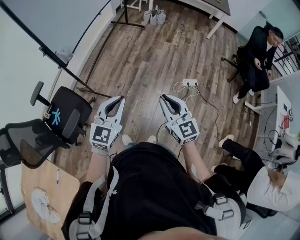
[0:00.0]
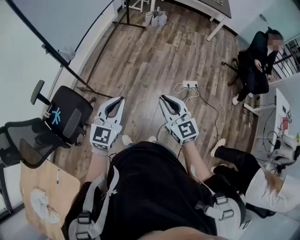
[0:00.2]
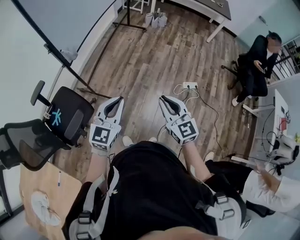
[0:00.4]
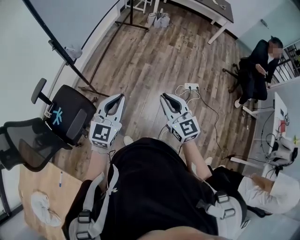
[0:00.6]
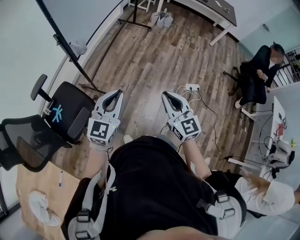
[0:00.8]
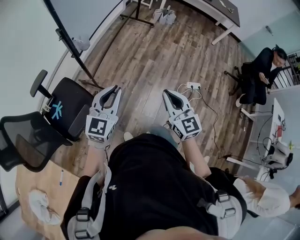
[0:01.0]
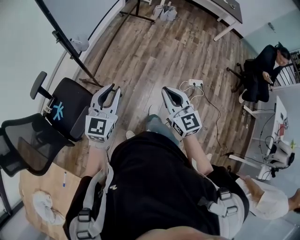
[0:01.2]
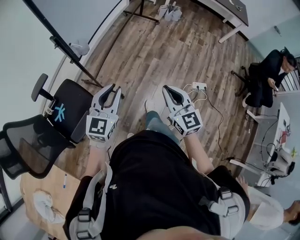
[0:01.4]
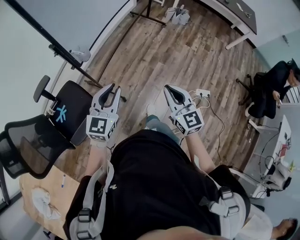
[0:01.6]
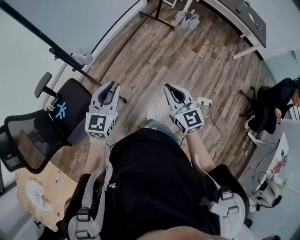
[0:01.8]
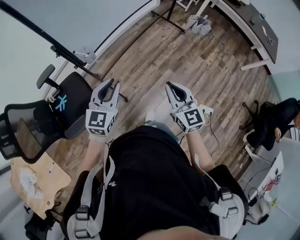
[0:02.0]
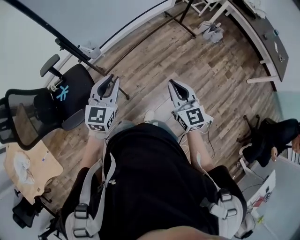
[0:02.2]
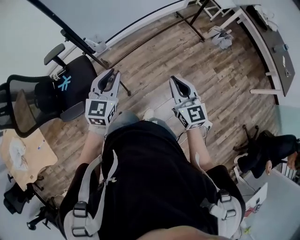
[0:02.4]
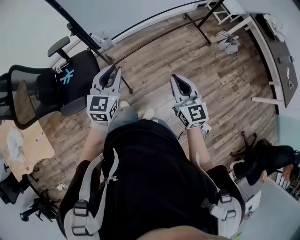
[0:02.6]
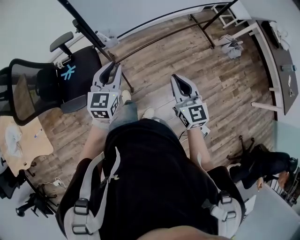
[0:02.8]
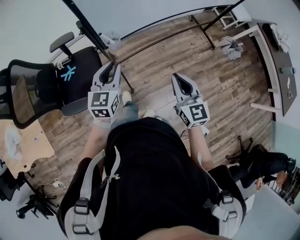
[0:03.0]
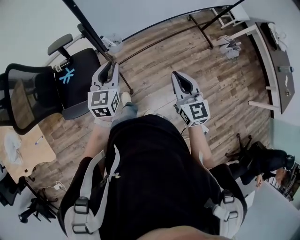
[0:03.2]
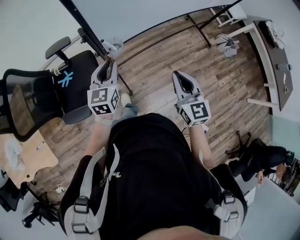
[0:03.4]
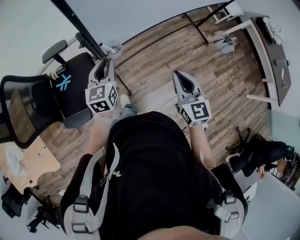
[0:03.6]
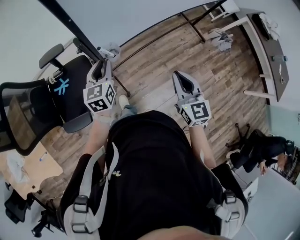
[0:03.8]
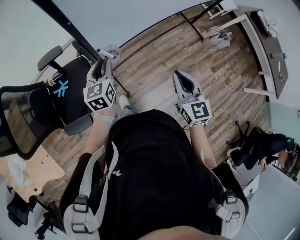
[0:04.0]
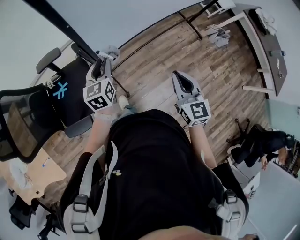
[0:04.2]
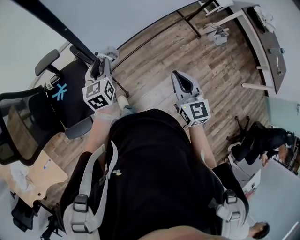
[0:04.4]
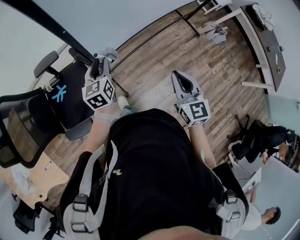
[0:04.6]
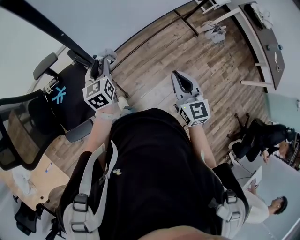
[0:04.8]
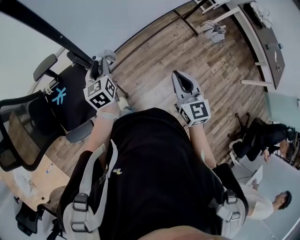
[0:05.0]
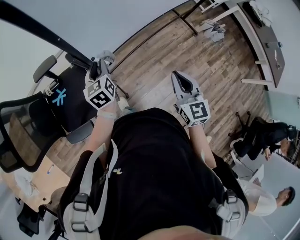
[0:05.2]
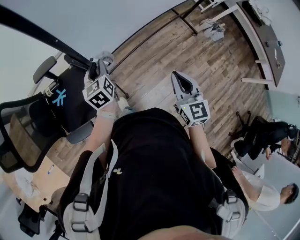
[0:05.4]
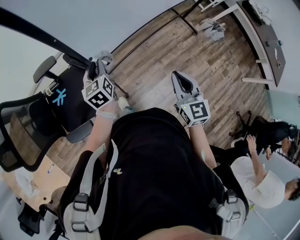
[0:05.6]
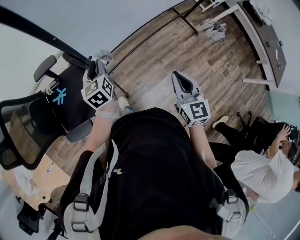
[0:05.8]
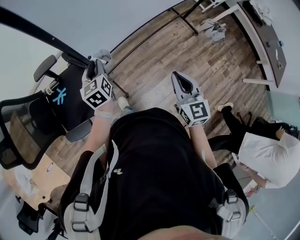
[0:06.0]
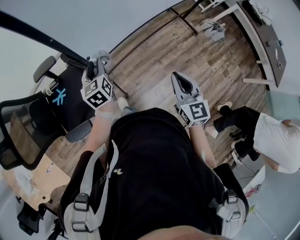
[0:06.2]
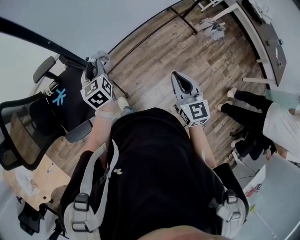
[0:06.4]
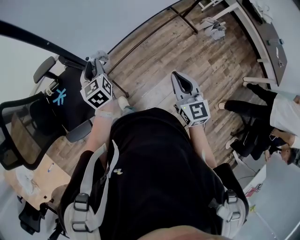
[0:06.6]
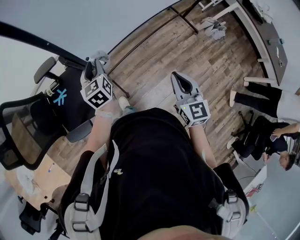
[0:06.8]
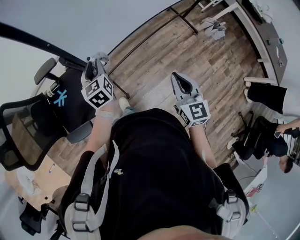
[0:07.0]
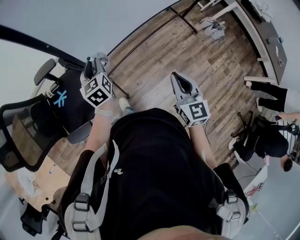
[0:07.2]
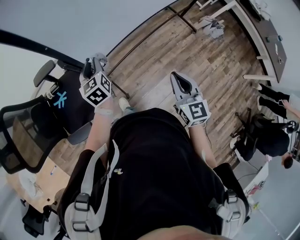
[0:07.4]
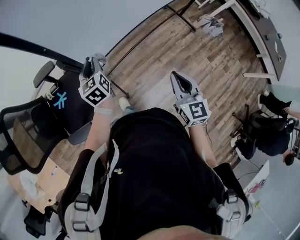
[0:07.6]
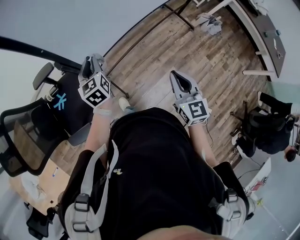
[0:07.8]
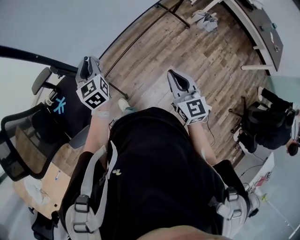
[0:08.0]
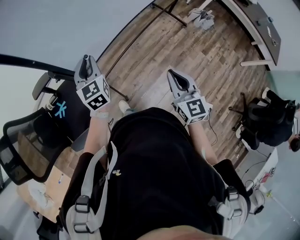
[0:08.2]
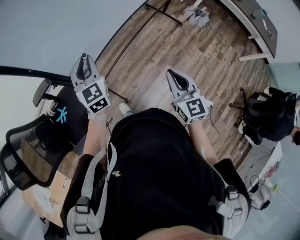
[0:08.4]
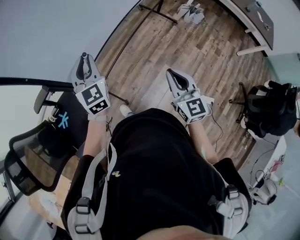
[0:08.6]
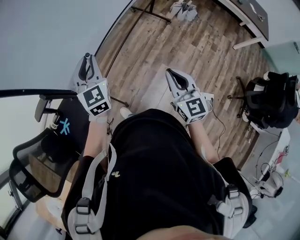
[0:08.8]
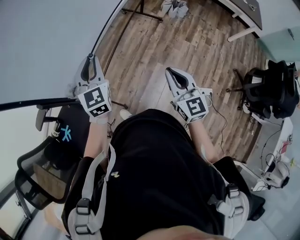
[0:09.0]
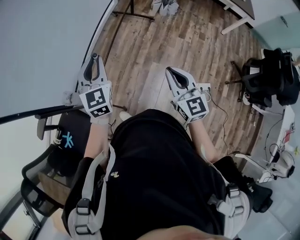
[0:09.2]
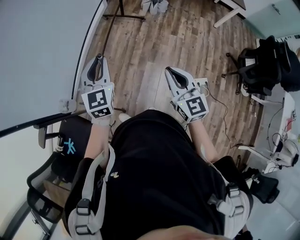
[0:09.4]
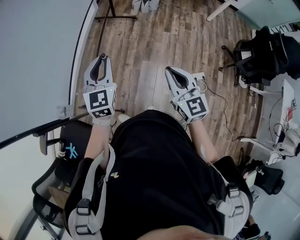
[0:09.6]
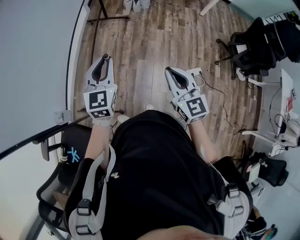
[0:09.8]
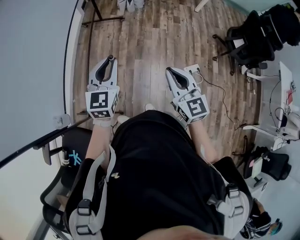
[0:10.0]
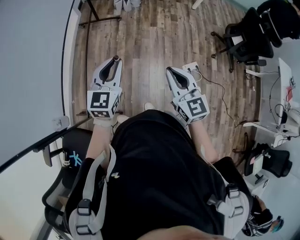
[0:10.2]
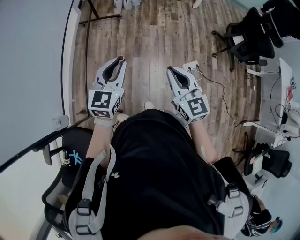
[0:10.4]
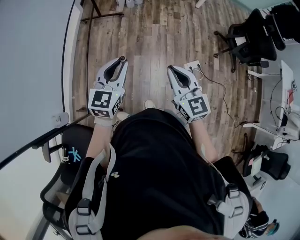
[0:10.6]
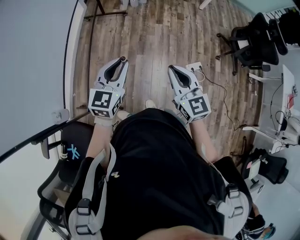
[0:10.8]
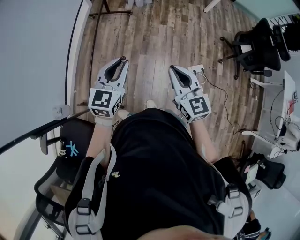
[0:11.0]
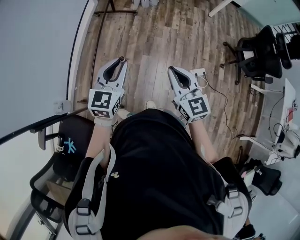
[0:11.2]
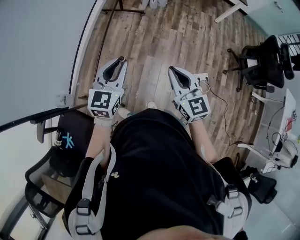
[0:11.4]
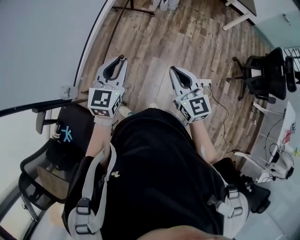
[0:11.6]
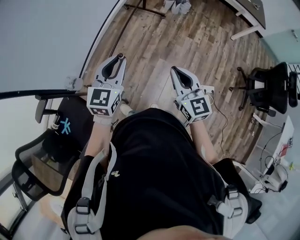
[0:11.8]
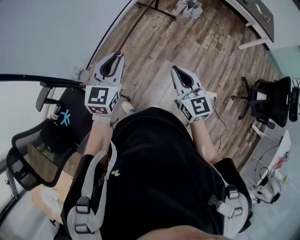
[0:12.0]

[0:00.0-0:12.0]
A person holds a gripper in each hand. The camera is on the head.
0:00.0 to 0:01.6: The two grippers go roughly 25 cm forward and to the left.
0:01.6 to 0:03.0: The left gripper shifts by some 20 cm, and rotates roughly 40 degrees. Meanwhile the right gripper shifts by about 25 cm, and swivels some 30 degrees.
0:03.0 to 0:04.4: The right gripper travels forward by roughly 10 cm. The left gripper travels forward, to the left and downward by roughly 15 cm.
0:04.4 to 0:07.6: The grippers move only a little.
0:07.6 to 0:09.0: The right gripper heads to the right and backward, covering about 15 cm. Meanwhile the left gripper is displaced to the right and upward by some 25 cm, and rotates roughly 50 degrees.
0:09.0 to 0:10.4: The left gripper ends up approximately 30 cm from where it was, and rotates roughly 50 degrees, while the right gripper ends up about 15 cm from where it was, and swivels about 20 degrees.
0:10.4 to 0:12.0: The left gripper moves about 20 cm, and swivels roughly 30 degrees. The right gripper ends up roughly 15 cm from where it was, and rotates about 30 degrees.

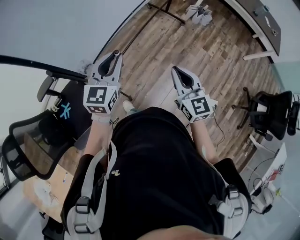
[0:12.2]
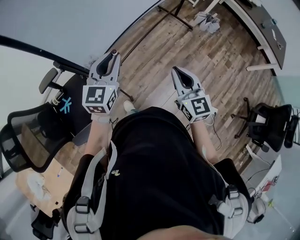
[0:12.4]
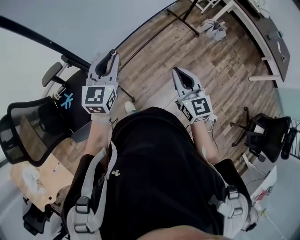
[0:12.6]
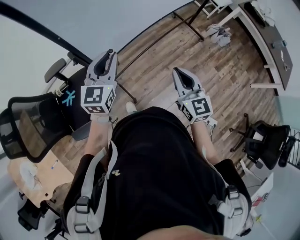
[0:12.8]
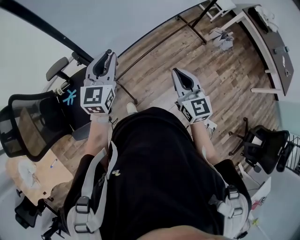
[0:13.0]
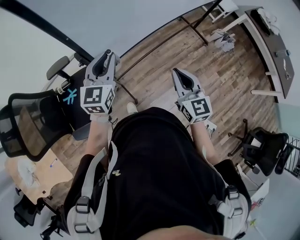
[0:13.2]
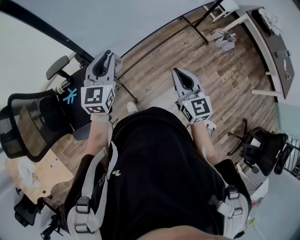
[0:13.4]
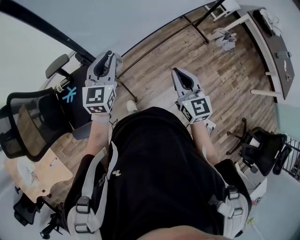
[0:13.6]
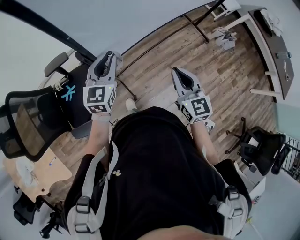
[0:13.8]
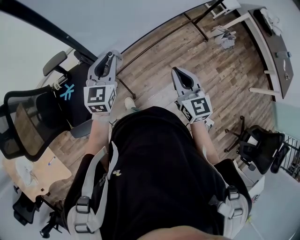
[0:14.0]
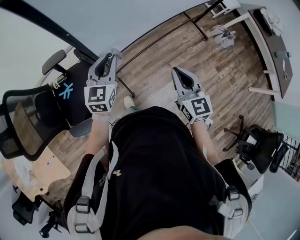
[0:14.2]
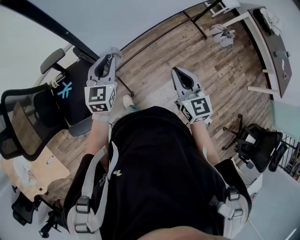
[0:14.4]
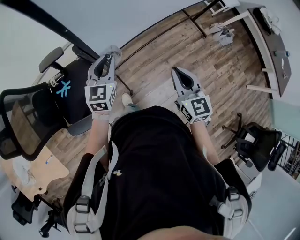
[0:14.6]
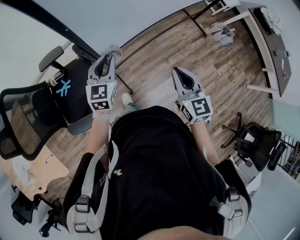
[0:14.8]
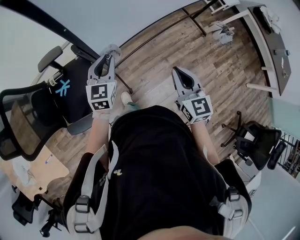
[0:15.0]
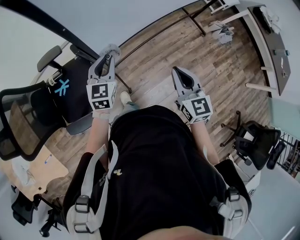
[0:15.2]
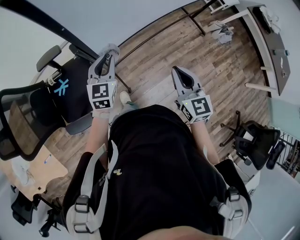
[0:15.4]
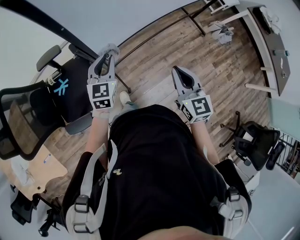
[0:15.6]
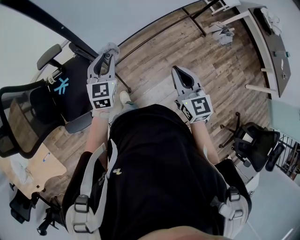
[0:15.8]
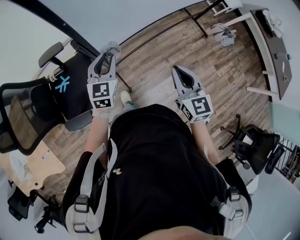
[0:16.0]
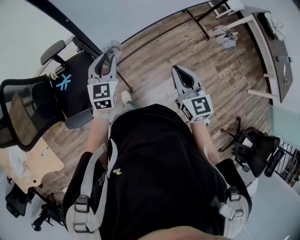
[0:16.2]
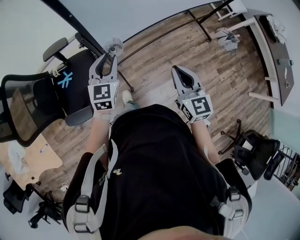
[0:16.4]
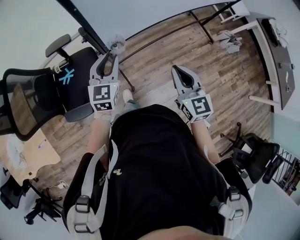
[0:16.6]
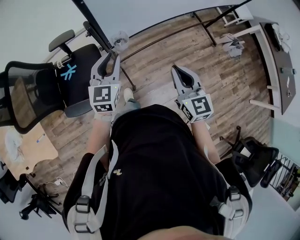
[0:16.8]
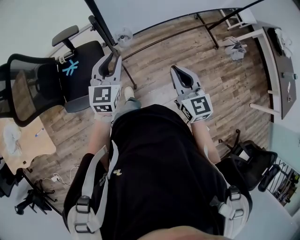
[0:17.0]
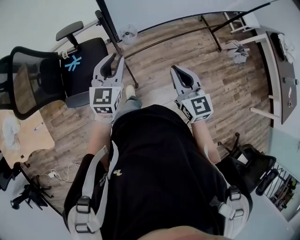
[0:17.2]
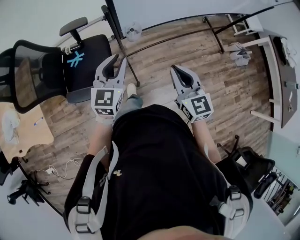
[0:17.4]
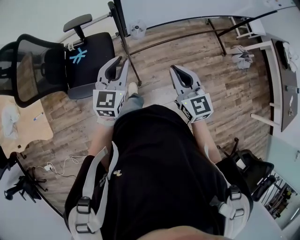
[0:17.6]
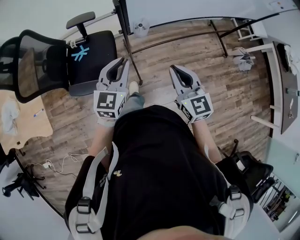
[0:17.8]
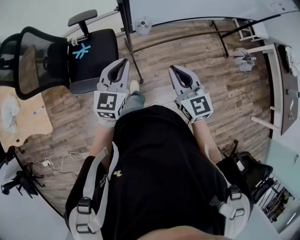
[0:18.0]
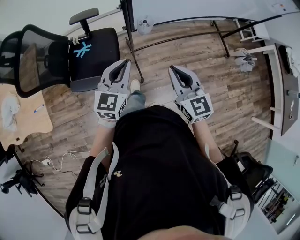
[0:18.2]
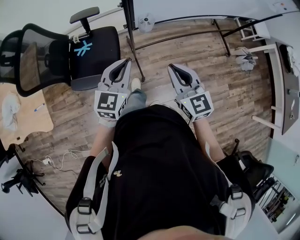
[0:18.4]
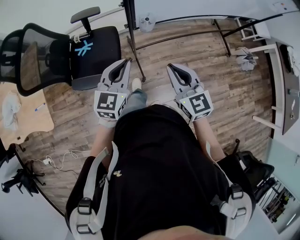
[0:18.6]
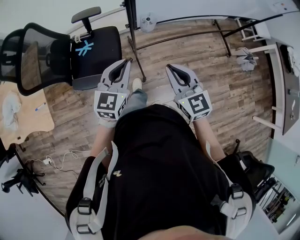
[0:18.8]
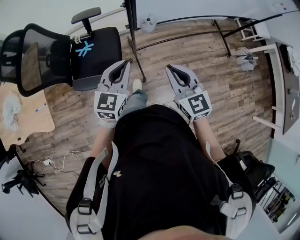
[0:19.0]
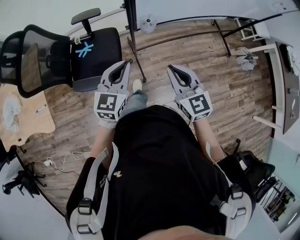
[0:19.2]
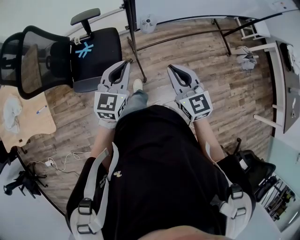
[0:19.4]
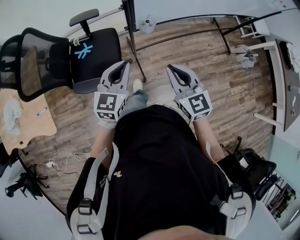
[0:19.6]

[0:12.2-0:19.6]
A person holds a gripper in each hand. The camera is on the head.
0:12.2 to 0:13.6: The left gripper is displaced to the left by some 20 cm, and rotates some 20 degrees. The right gripper is displaced to the left and forward by roughly 15 cm.
0:13.6 to 0:15.2: The left gripper moves downward, approximately 10 cm.
0:15.2 to 0:16.6: The left gripper shifts approximately 5 cm backward.
0:16.6 to 0:18.2: The right gripper is displaced to the left and backward by approximately 10 cm. Meanwhile the left gripper goes some 15 cm backward, and closes up.
0:18.2 to 0:19.6: The grippers stay close to where they were, moving slightly.

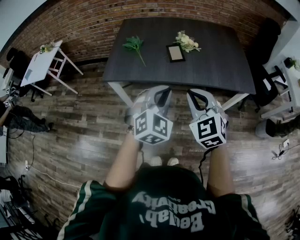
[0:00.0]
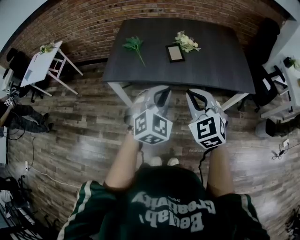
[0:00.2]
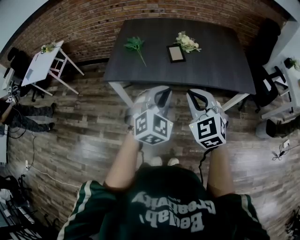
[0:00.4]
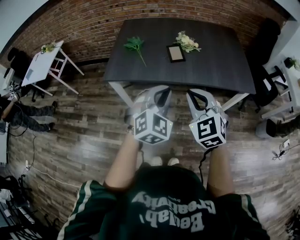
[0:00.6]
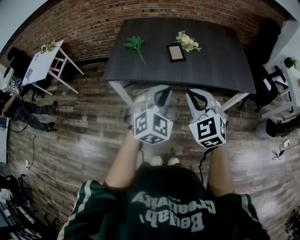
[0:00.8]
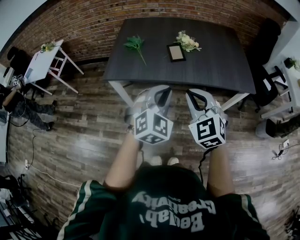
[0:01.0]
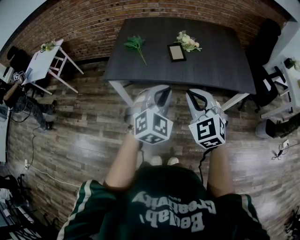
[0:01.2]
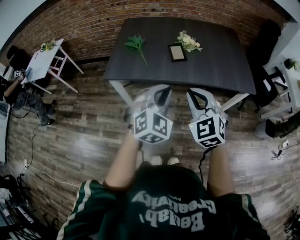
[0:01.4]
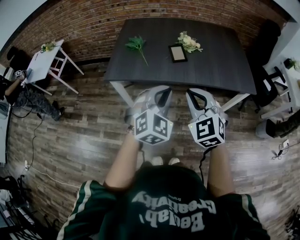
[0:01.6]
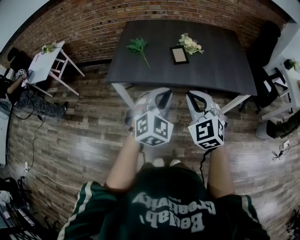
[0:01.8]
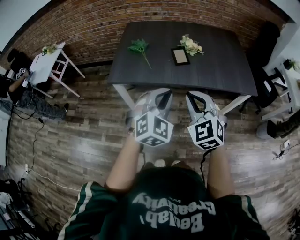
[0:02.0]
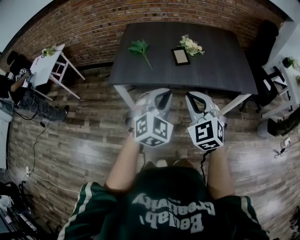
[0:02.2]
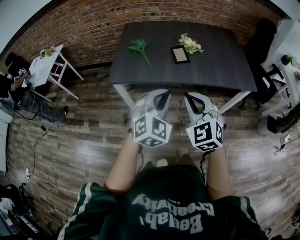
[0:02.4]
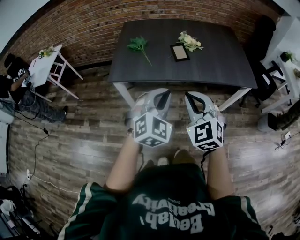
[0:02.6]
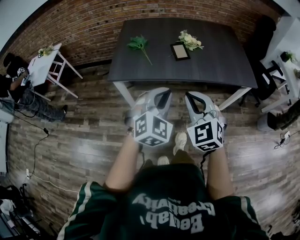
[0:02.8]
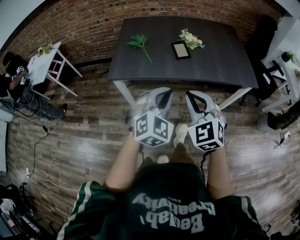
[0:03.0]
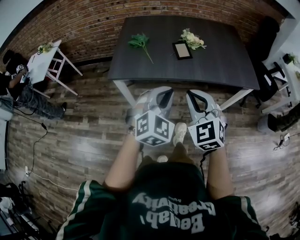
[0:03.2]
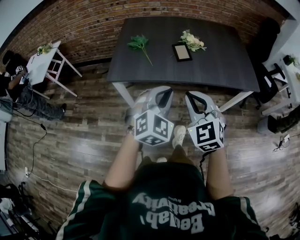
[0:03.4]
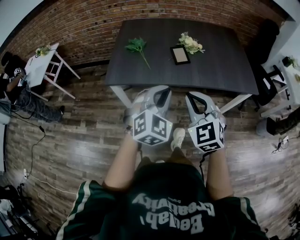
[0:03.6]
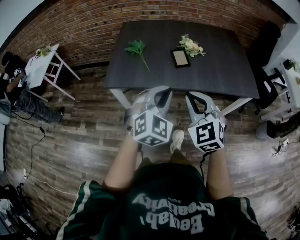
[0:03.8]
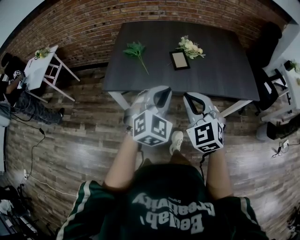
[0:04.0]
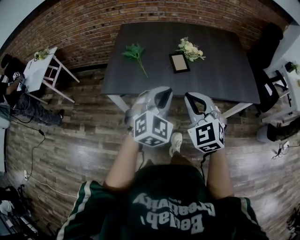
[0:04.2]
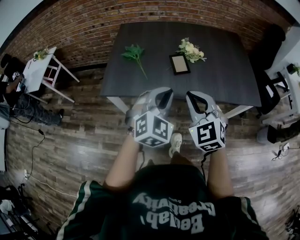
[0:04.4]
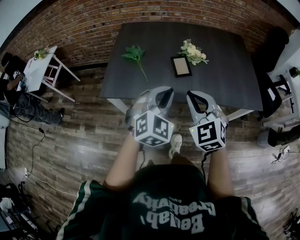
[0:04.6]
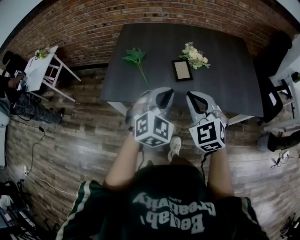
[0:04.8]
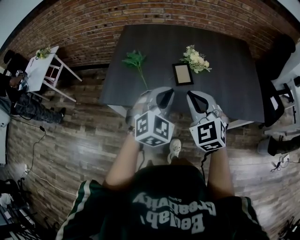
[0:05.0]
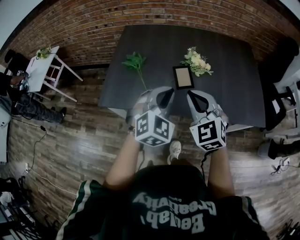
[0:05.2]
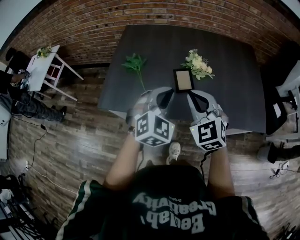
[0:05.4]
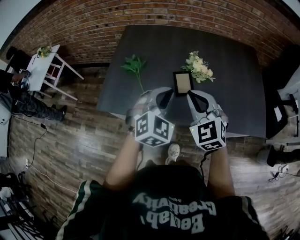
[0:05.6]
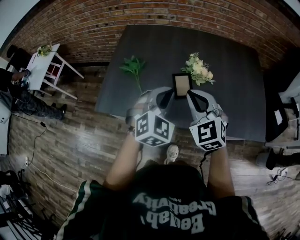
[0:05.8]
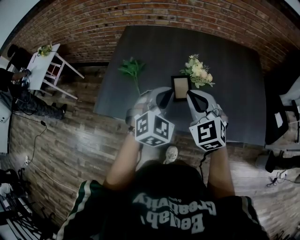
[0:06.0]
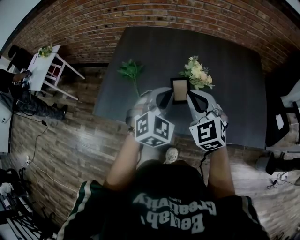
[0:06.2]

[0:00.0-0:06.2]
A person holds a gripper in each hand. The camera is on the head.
0:00.0 to 0:01.6: There are only small adjustments of the grippers.
0:01.6 to 0:03.2: Both grippers move to the left, some 5 cm.
0:03.2 to 0:04.6: Both grippers move forward, some 20 cm.
0:04.6 to 0:06.2: The two grippers go approximately 20 cm forward.
